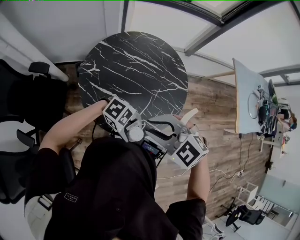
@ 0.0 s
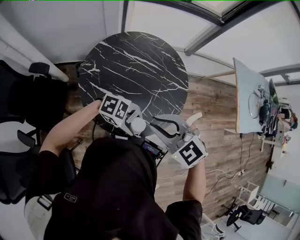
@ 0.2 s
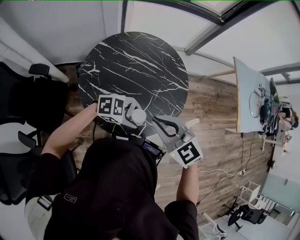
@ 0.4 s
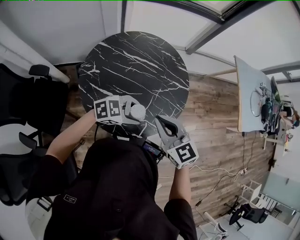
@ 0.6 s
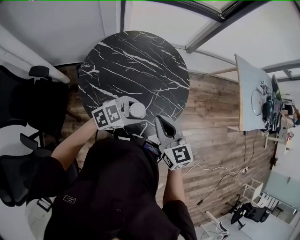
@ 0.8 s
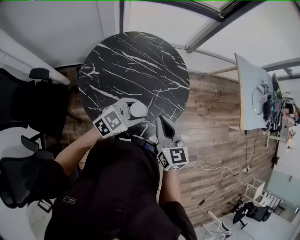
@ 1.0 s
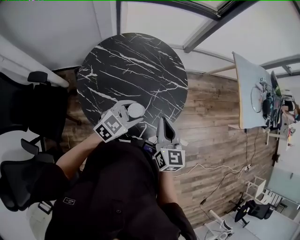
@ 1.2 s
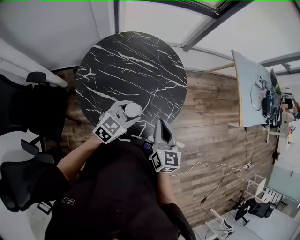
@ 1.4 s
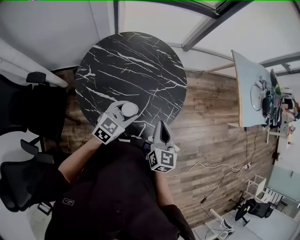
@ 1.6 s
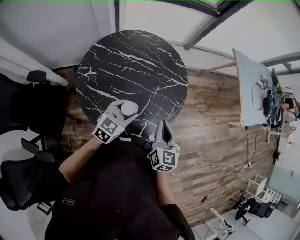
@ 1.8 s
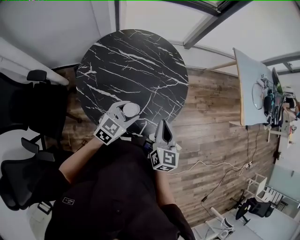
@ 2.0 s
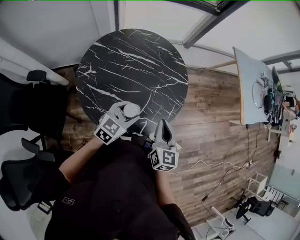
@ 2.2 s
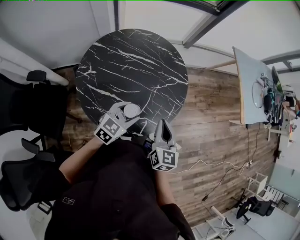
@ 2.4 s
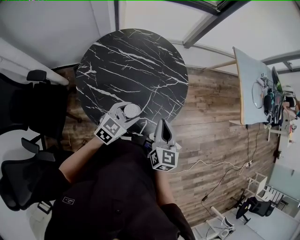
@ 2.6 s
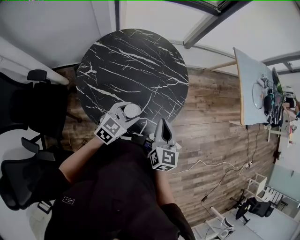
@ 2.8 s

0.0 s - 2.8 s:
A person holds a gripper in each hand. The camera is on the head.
0.0 s - 1.4 s: The left gripper ends up approximately 15 cm from where it was, and turns by roughly 80 degrees, while the right gripper moves some 15 cm, and turns by some 80 degrees.
1.4 s - 2.8 s: The grippers move only a little.

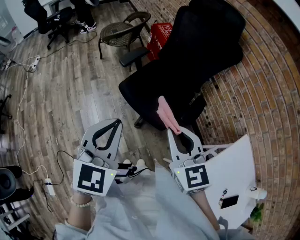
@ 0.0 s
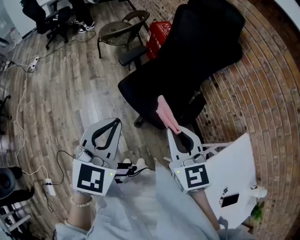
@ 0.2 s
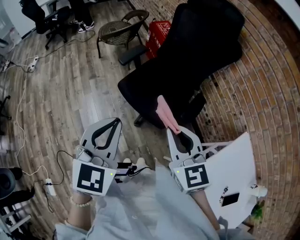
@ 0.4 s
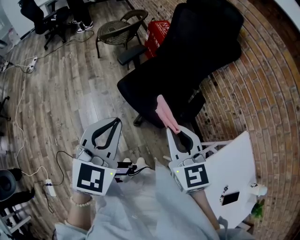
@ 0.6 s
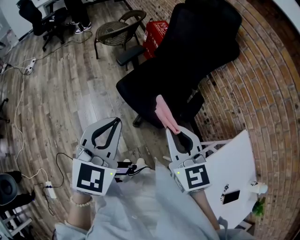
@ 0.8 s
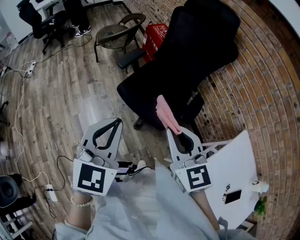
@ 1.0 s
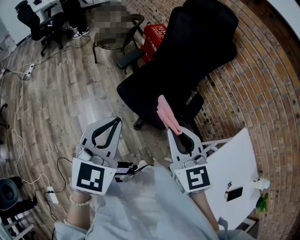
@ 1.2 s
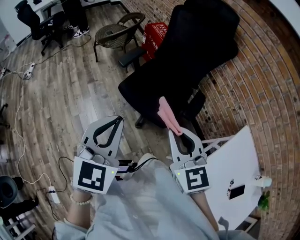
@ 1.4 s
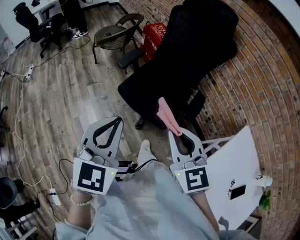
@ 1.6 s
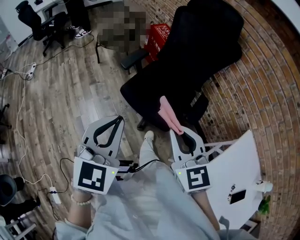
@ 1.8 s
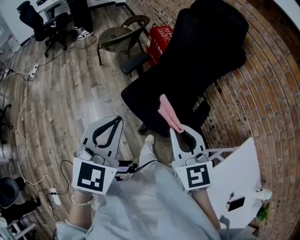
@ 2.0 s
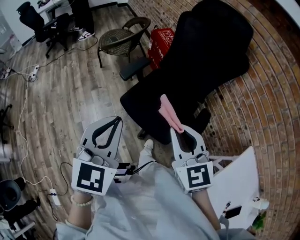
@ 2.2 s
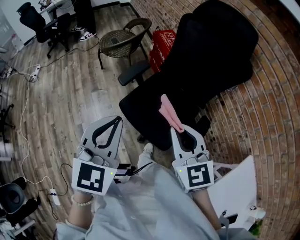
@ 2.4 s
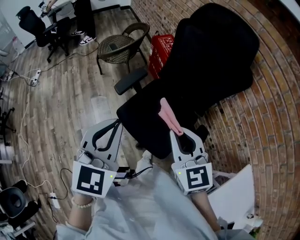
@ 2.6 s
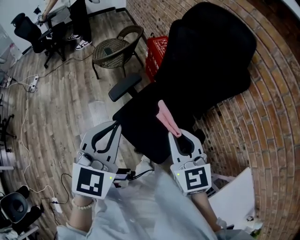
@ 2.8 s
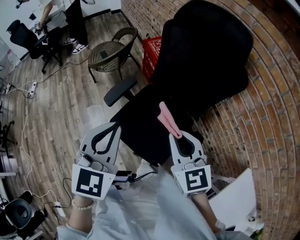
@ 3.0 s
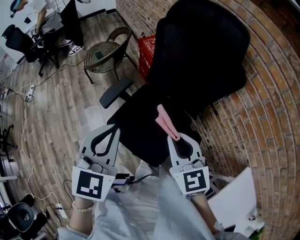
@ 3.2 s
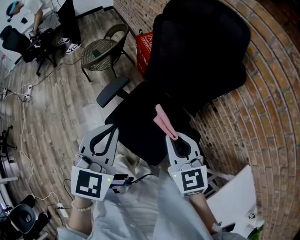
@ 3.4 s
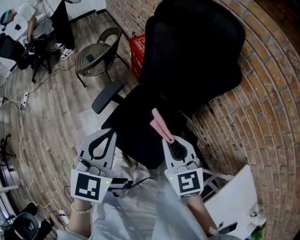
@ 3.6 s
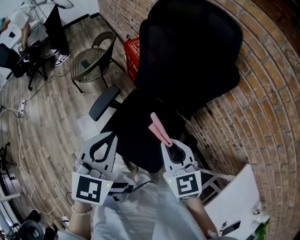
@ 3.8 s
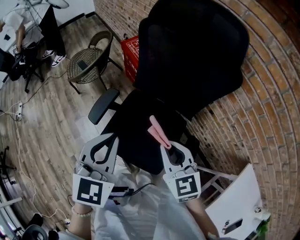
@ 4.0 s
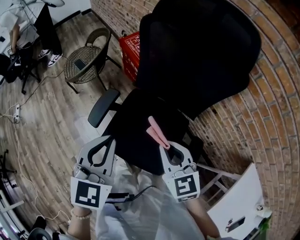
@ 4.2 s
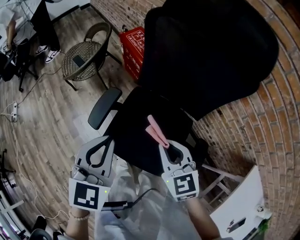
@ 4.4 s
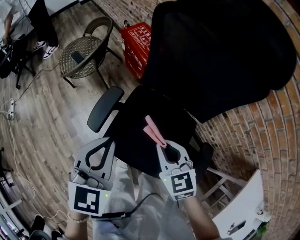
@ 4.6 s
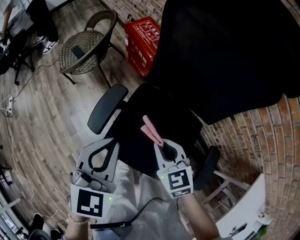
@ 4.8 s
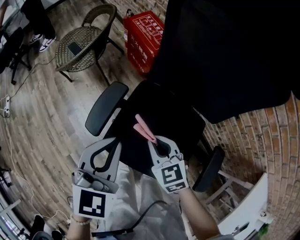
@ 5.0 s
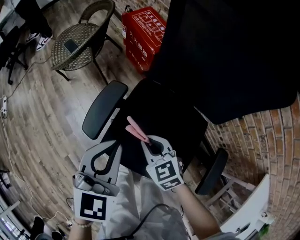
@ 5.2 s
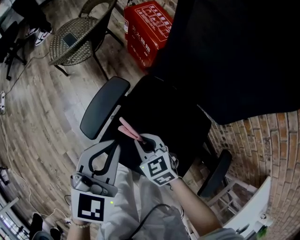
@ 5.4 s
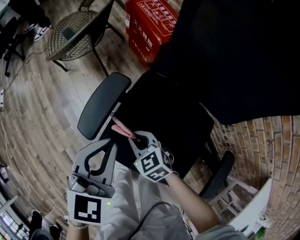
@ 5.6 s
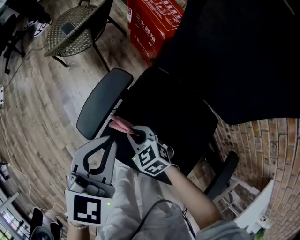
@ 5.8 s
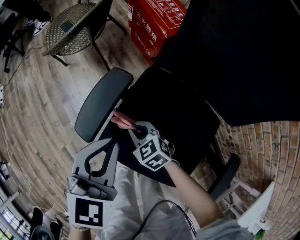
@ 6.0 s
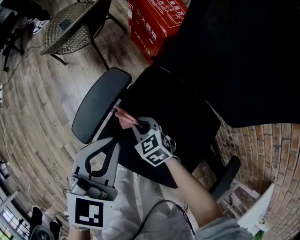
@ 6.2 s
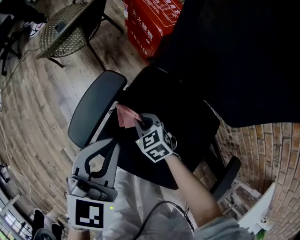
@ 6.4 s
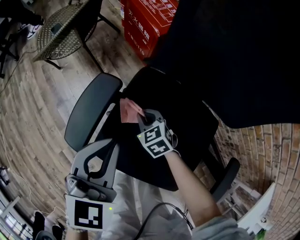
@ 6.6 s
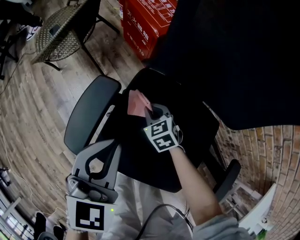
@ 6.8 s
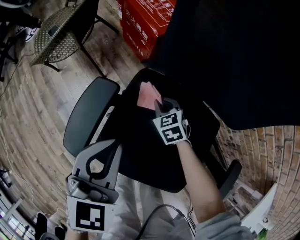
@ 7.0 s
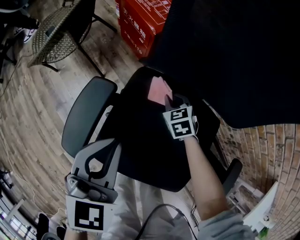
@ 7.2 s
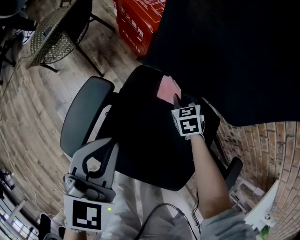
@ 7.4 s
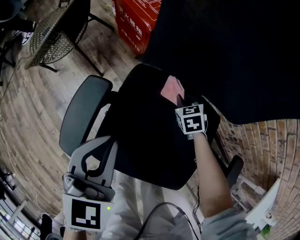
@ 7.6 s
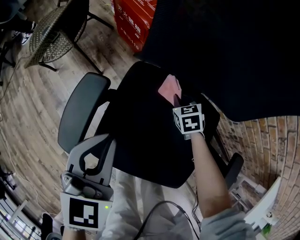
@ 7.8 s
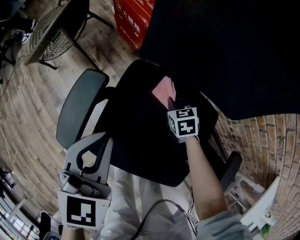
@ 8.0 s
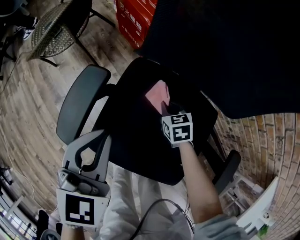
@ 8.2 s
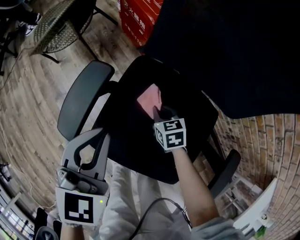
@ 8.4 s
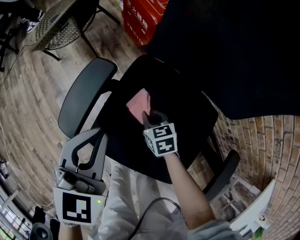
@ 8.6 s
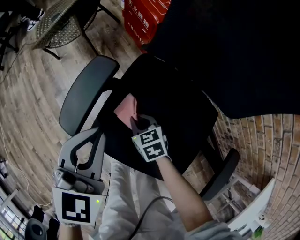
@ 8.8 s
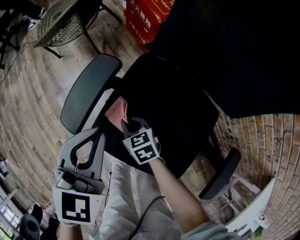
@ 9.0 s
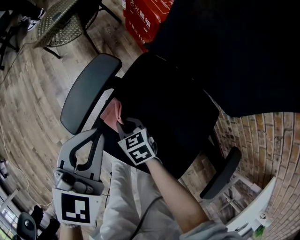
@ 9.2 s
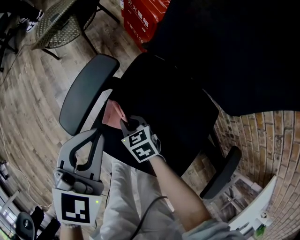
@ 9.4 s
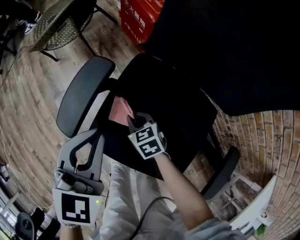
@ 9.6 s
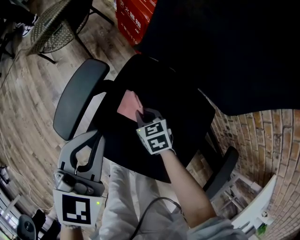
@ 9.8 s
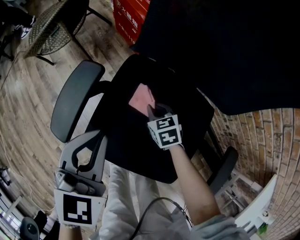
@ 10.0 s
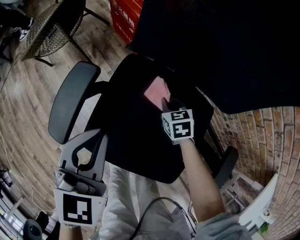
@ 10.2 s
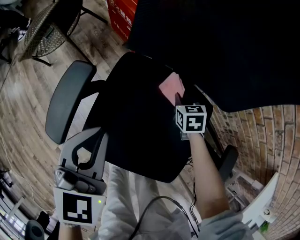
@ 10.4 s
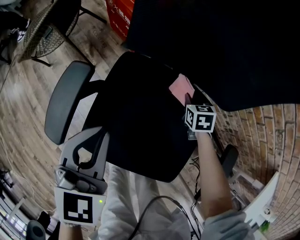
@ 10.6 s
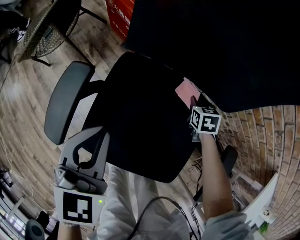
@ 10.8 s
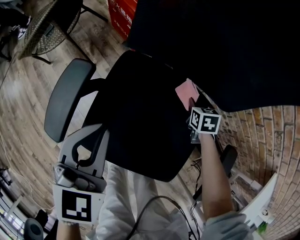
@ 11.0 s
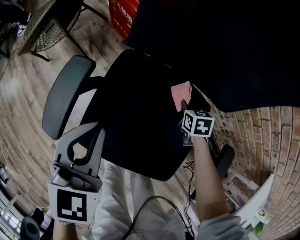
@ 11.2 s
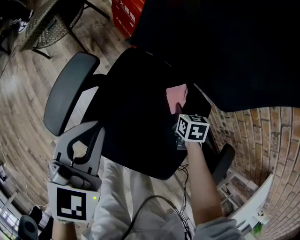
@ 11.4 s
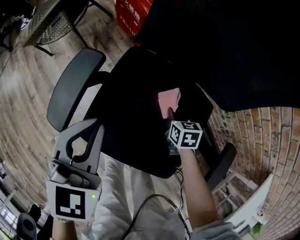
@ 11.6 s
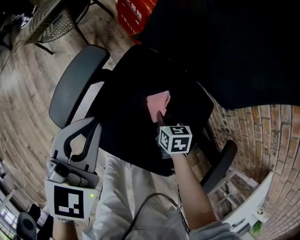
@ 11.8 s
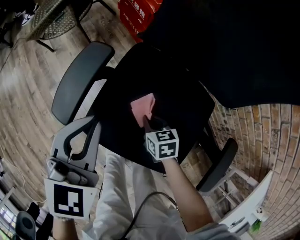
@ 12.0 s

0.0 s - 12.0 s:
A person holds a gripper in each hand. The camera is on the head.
0.0 s - 1.6 s: There are only small adjustments of the grippers.
1.6 s - 3.0 s: The grippers both shift forward and to the right by some 30 cm.
3.0 s - 4.4 s: The right gripper is displaced downward and forward by about 15 cm. The left gripper goes about 15 cm forward and downward.
4.4 s - 6.0 s: The left gripper shifts roughly 20 cm downward. Meanwhile the right gripper shifts some 40 cm downward and to the left, and turns by approximately 30 degrees.
6.0 s - 7.6 s: The right gripper shifts by about 30 cm, and turns by some 40 degrees. Meanwhile the left gripper ends up approximately 5 cm from where it was.
7.6 s - 9.0 s: The right gripper changes place by about 30 cm, and changes its angle by about 30 degrees; the left gripper shifts by roughly 5 cm.
9.0 s - 10.4 s: The left gripper changes place by approximately 5 cm; the right gripper moves approximately 30 cm, and rotates some 30 degrees.
10.4 s - 12.0 s: The right gripper heads backward and to the left, covering roughly 20 cm, while the left gripper travels to the left by some 5 cm.

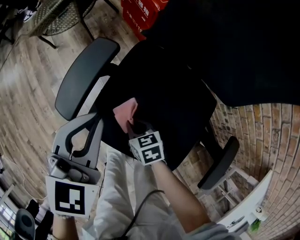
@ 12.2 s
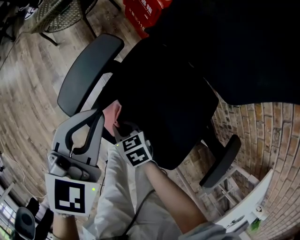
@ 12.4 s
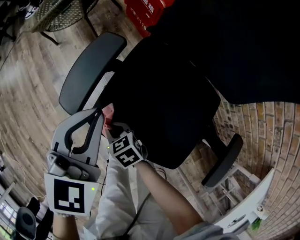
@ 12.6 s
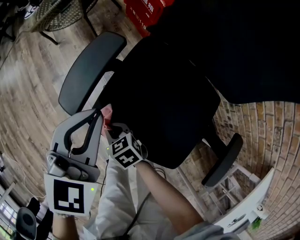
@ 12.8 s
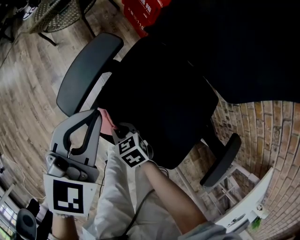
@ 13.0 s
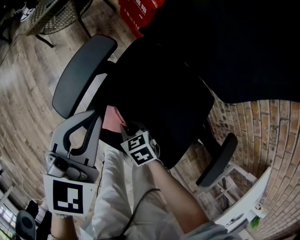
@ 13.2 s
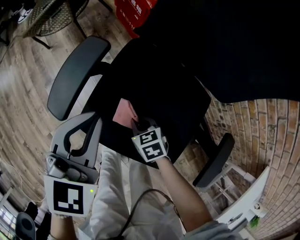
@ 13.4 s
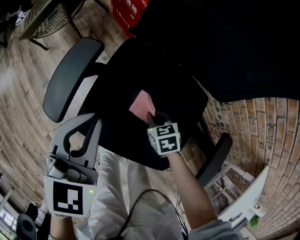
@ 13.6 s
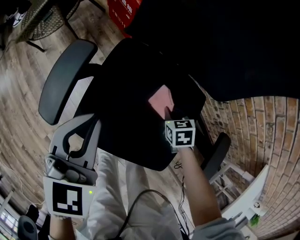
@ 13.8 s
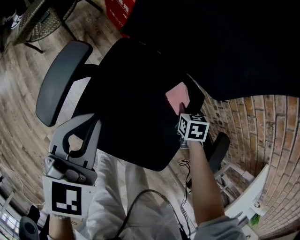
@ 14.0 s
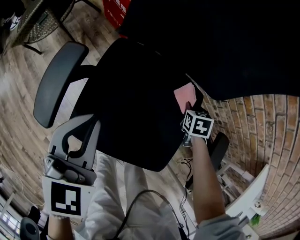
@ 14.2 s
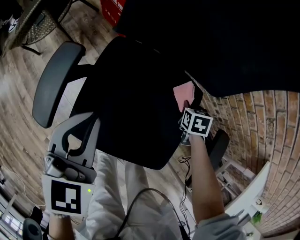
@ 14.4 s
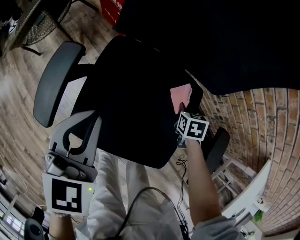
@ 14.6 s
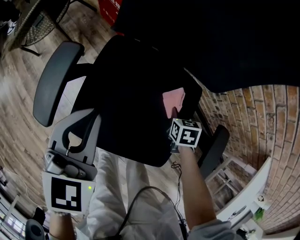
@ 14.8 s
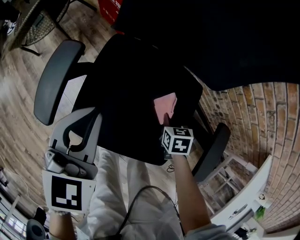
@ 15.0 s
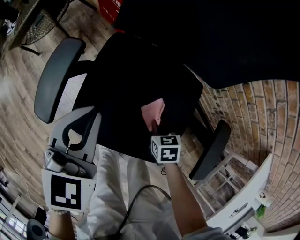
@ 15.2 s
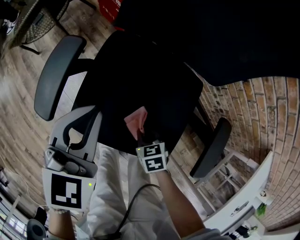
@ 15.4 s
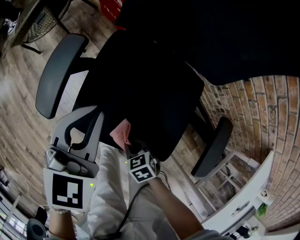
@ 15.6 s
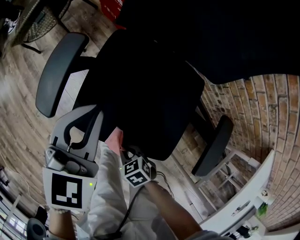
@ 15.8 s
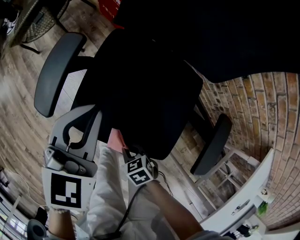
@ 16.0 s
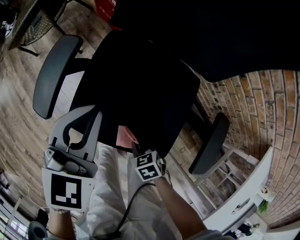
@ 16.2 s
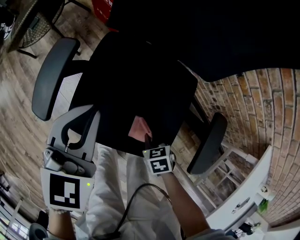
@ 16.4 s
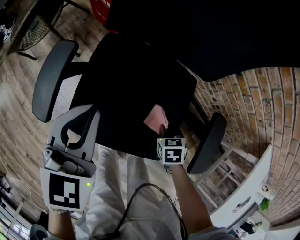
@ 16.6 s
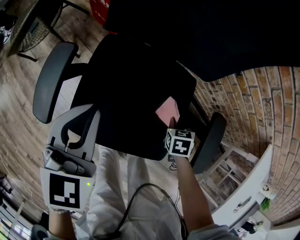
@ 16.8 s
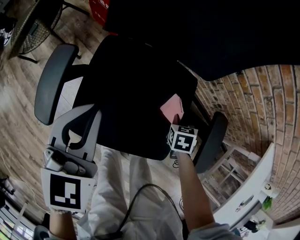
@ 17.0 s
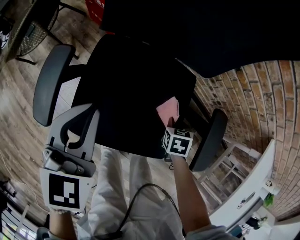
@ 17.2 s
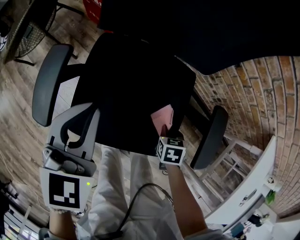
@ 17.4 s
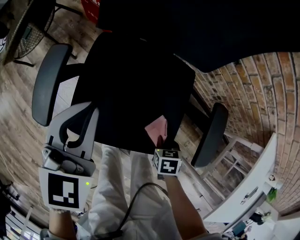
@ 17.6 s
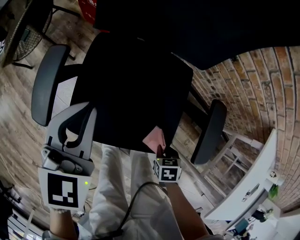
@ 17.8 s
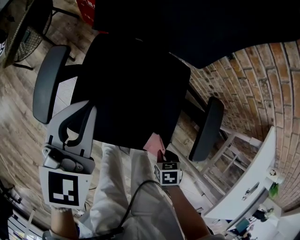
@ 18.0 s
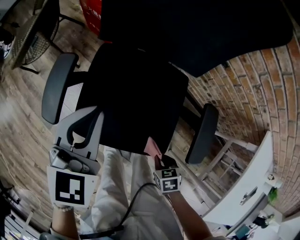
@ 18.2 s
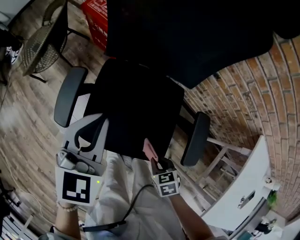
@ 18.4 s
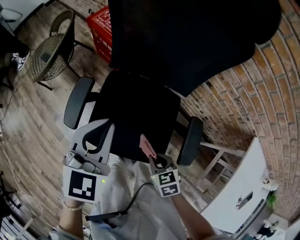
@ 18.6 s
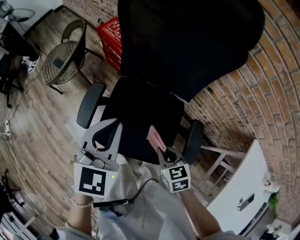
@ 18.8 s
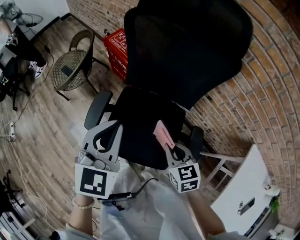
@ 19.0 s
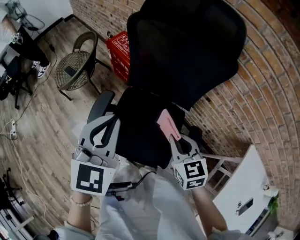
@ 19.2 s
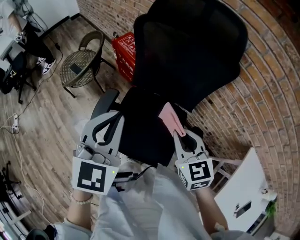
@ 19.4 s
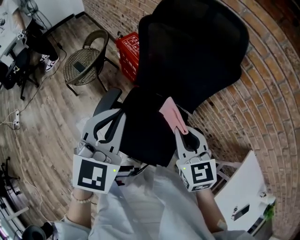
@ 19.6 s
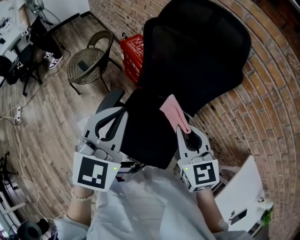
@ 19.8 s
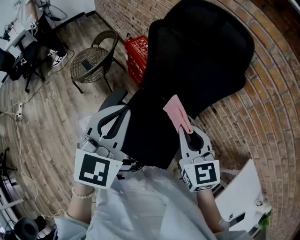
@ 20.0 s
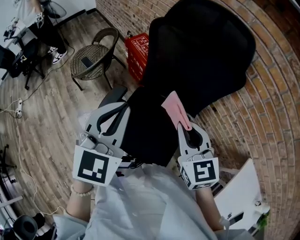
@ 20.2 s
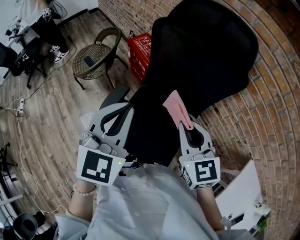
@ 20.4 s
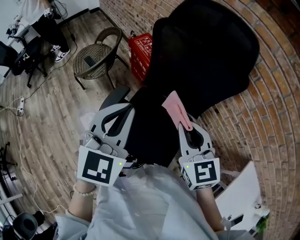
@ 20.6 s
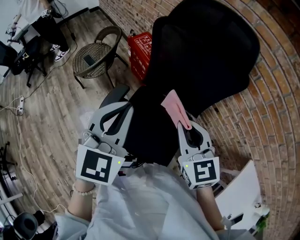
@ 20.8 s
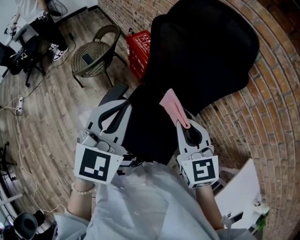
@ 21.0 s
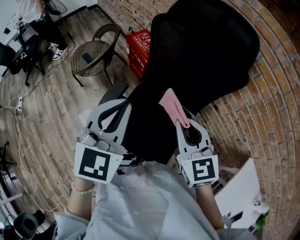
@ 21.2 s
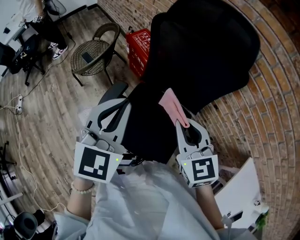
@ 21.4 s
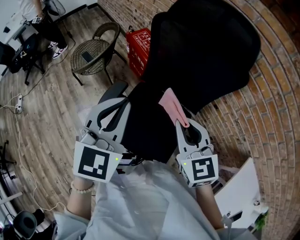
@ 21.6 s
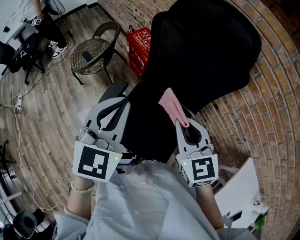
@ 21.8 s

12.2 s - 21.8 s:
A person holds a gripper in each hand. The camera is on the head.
12.2 s - 13.8 s: The right gripper moves some 25 cm, and turns by about 20 degrees.
13.8 s - 15.4 s: The right gripper shifts about 15 cm backward.
15.4 s - 17.0 s: The right gripper shifts by some 20 cm, and changes its angle by approximately 30 degrees.
17.0 s - 18.6 s: The two grippers go about 20 cm upward. The right gripper swivels roughly 30 degrees.
18.6 s - 20.2 s: The left gripper heads upward, covering roughly 20 cm, while the right gripper is displaced upward by roughly 35 cm, and tips its fingers upward by some 40 degrees.
20.2 s - 21.8 s: There are only small adjustments of the grippers.
